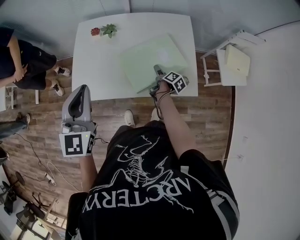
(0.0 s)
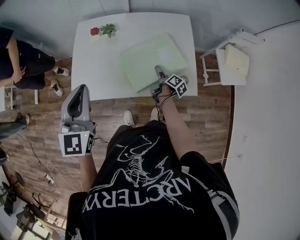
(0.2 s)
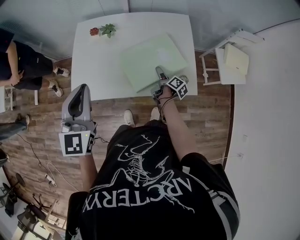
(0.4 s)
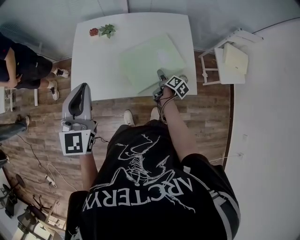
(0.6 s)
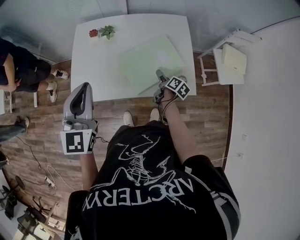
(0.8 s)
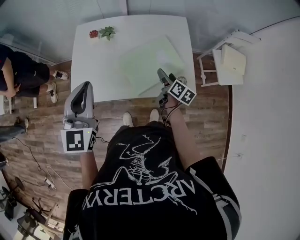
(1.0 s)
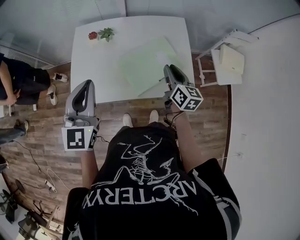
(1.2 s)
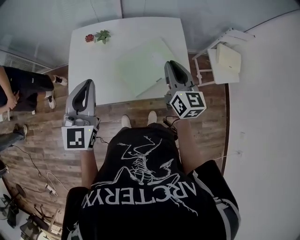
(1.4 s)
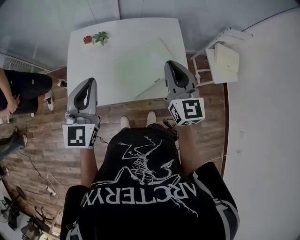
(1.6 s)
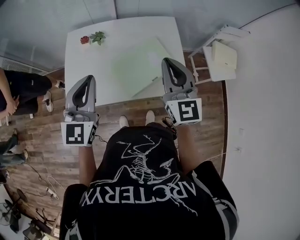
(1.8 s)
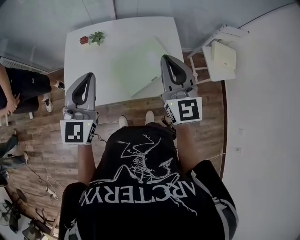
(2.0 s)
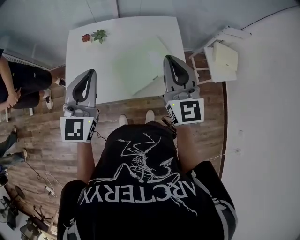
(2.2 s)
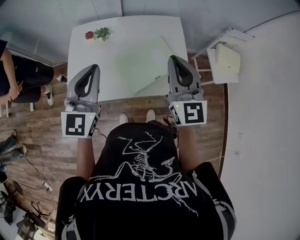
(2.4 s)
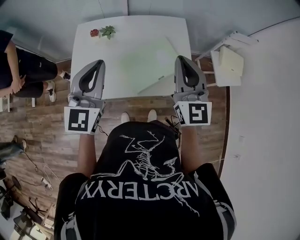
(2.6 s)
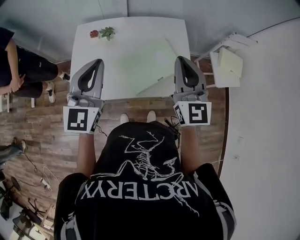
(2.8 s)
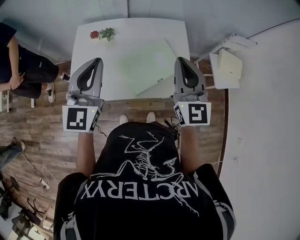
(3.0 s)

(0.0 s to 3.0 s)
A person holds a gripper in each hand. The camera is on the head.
0.0 s - 1.6 s: The right gripper moves upward, some 35 cm, twists roughly 80 degrees counterclockwise, seen from behind, and closes up.
1.6 s - 3.0 s: The grippers move only a little.

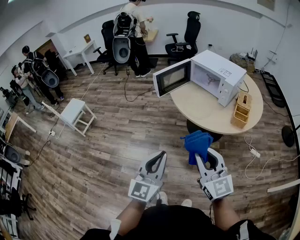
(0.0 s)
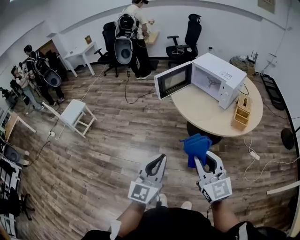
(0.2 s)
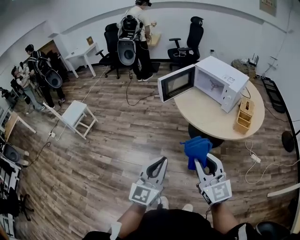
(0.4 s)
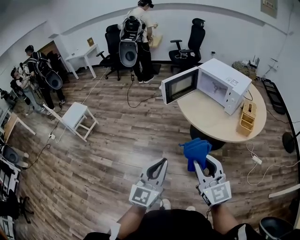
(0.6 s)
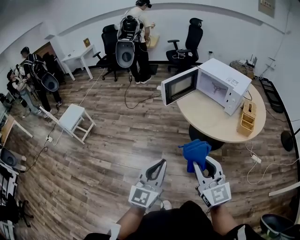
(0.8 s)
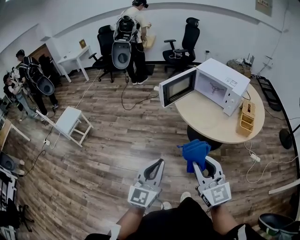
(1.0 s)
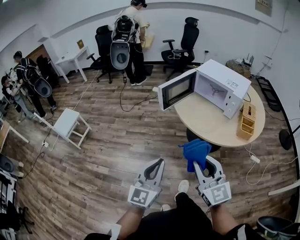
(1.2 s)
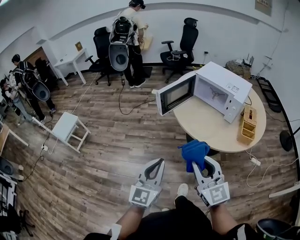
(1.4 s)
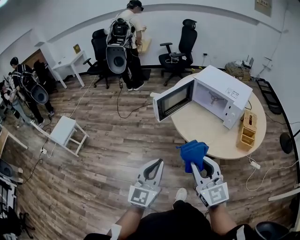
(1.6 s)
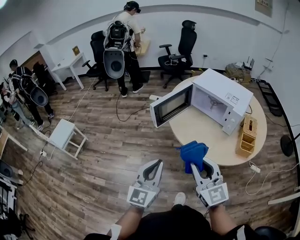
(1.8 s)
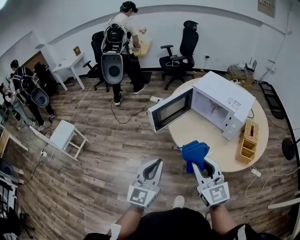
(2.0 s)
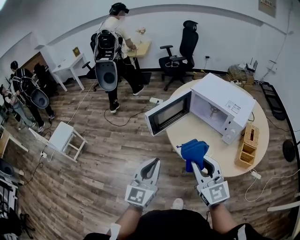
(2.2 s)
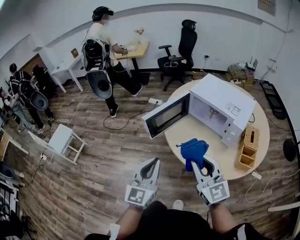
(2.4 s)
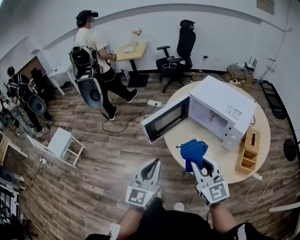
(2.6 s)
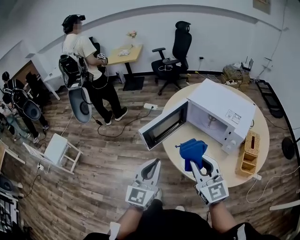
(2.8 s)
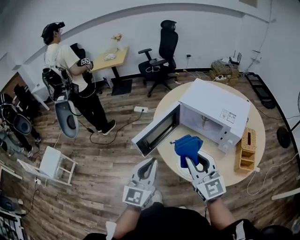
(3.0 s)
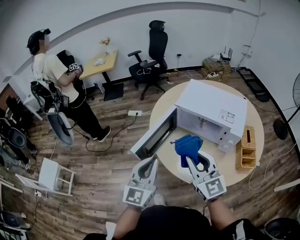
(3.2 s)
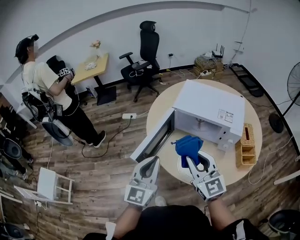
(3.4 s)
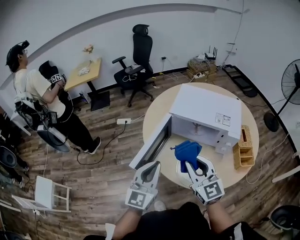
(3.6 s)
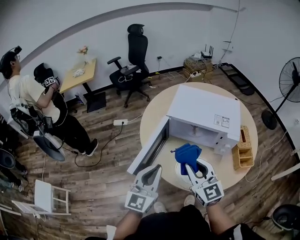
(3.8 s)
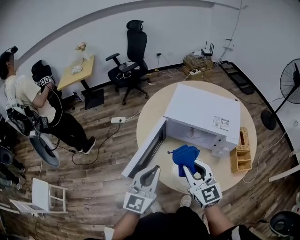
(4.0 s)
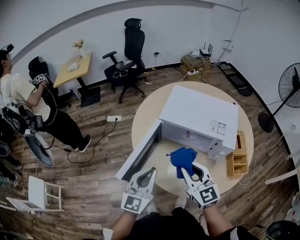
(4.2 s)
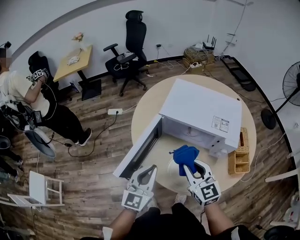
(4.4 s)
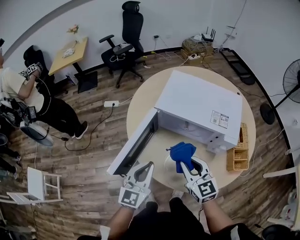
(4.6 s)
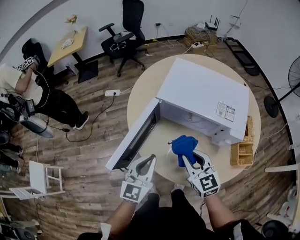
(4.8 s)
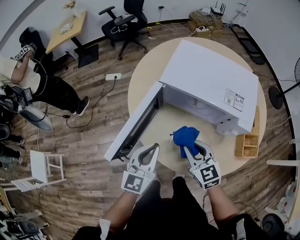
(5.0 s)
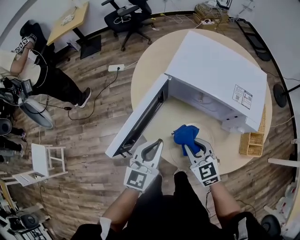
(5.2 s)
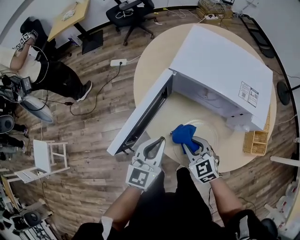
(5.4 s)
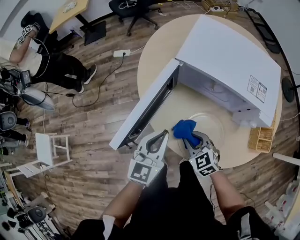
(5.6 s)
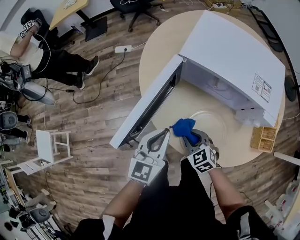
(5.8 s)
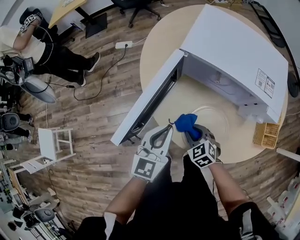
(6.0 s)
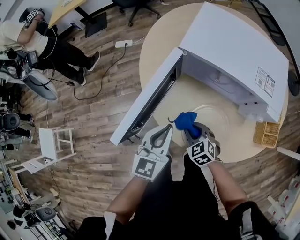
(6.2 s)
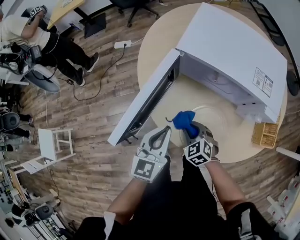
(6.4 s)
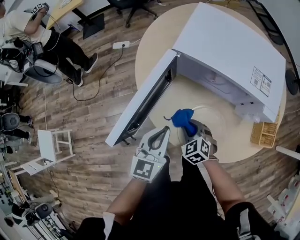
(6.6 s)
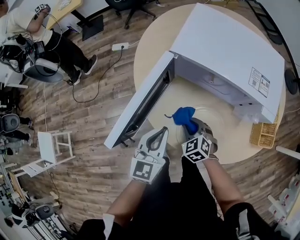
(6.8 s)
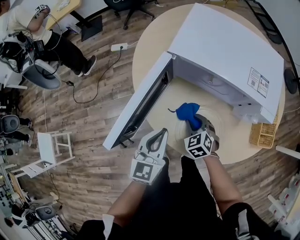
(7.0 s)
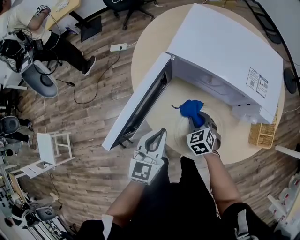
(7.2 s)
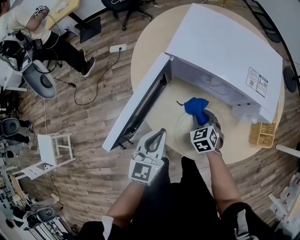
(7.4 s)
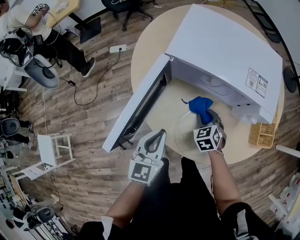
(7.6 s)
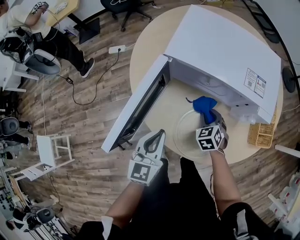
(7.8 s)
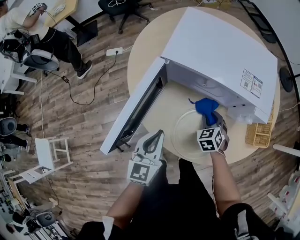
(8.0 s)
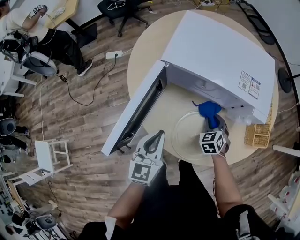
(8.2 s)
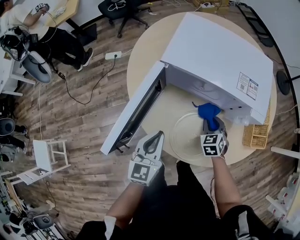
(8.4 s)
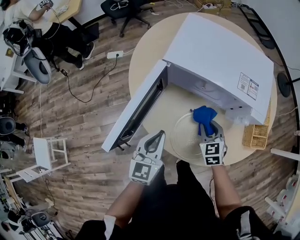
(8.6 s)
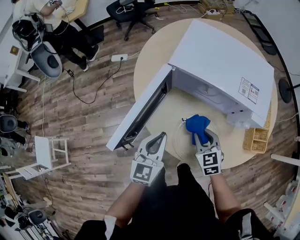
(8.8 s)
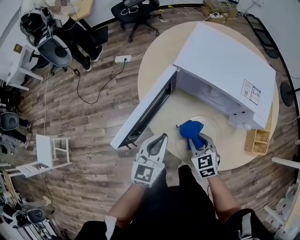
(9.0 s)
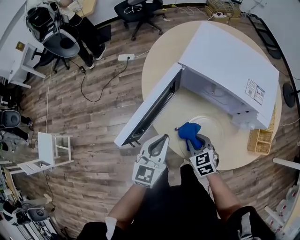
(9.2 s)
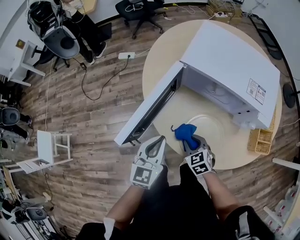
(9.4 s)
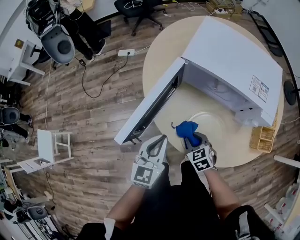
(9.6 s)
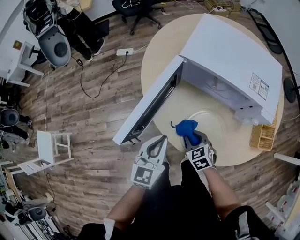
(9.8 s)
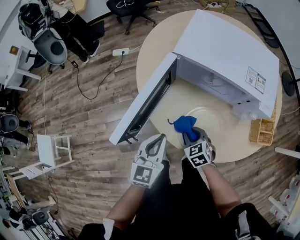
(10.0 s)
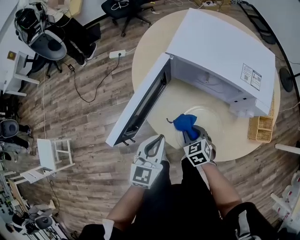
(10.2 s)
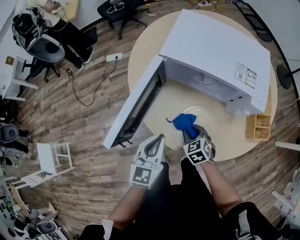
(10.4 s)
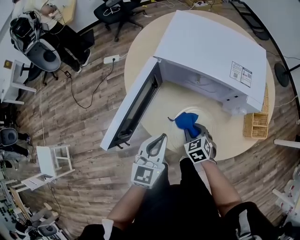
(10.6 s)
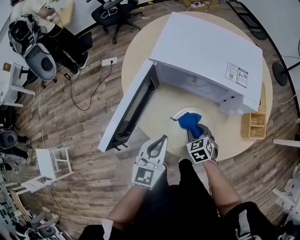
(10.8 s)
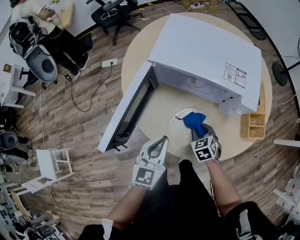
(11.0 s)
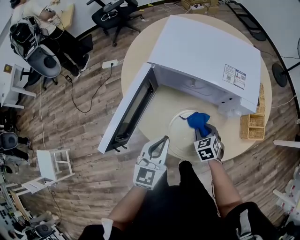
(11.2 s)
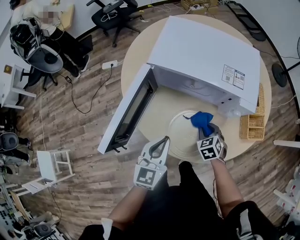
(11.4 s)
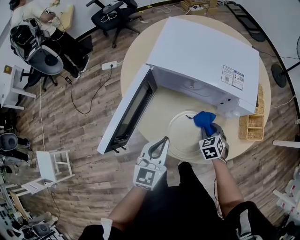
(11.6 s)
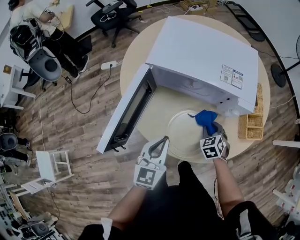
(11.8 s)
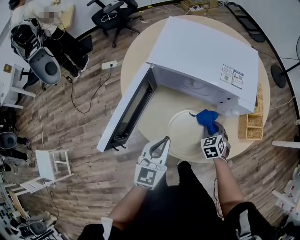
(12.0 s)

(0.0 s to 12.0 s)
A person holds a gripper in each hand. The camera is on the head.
0.0 s - 1.6 s: The left gripper shifts some 20 cm forward. Meanwhile the right gripper moves forward and to the left, roughly 20 cm.
1.6 s - 3.0 s: Both grippers move forward, about 30 cm.
3.0 s - 4.4 s: The grippers both shift forward and downward by some 15 cm. The right gripper rotates about 20 degrees.
4.4 s - 6.0 s: The left gripper heads downward, covering roughly 10 cm; the right gripper moves downward, some 25 cm, and tips its fingers downward by about 40 degrees.
6.0 s - 7.6 s: The right gripper goes approximately 15 cm to the right and forward, and swivels some 20 degrees.
7.6 s - 9.0 s: The right gripper shifts roughly 10 cm backward and upward.
9.0 s - 10.4 s: The right gripper is displaced downward by some 5 cm.
10.4 s - 12.0 s: The right gripper travels to the right by about 15 cm. Meanwhile the left gripper is displaced to the right by approximately 5 cm.

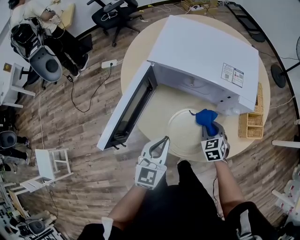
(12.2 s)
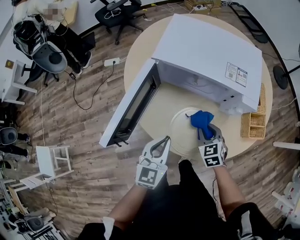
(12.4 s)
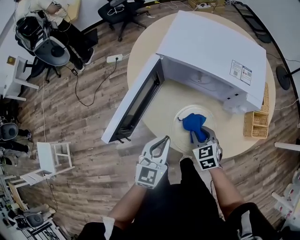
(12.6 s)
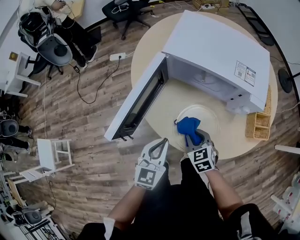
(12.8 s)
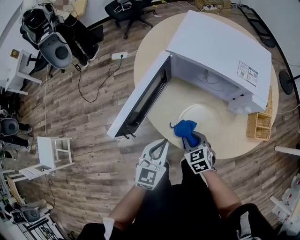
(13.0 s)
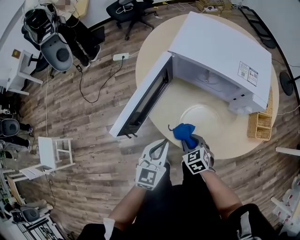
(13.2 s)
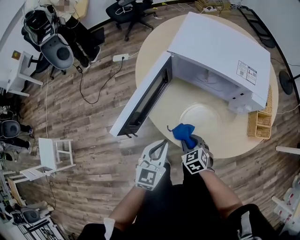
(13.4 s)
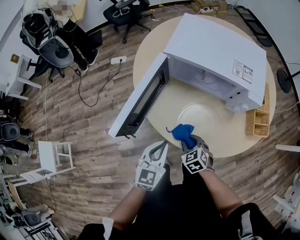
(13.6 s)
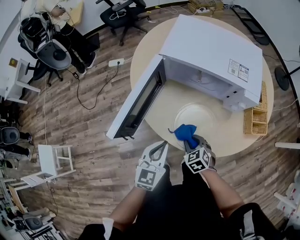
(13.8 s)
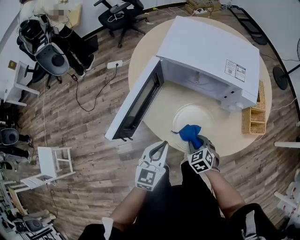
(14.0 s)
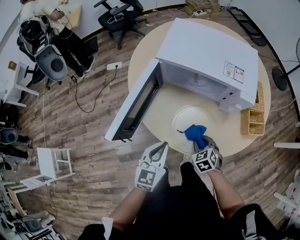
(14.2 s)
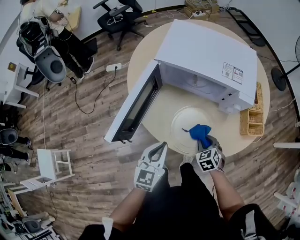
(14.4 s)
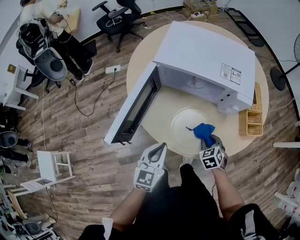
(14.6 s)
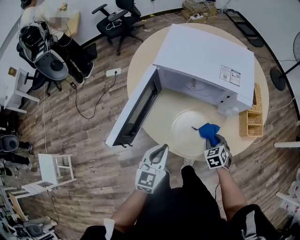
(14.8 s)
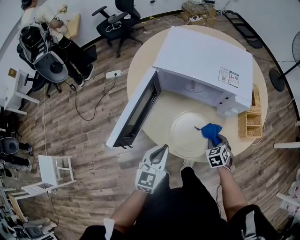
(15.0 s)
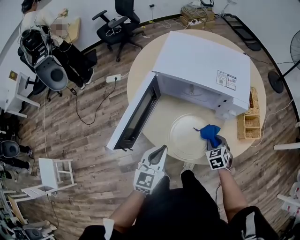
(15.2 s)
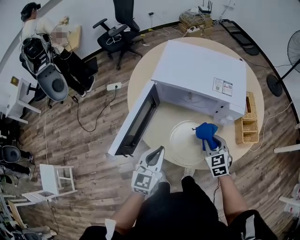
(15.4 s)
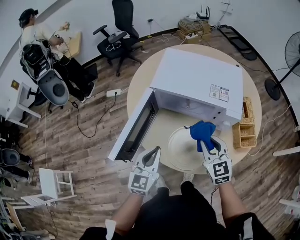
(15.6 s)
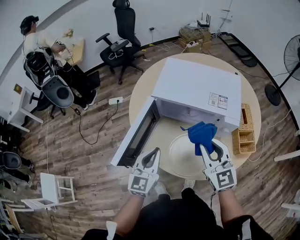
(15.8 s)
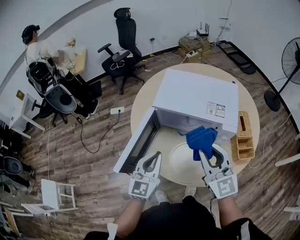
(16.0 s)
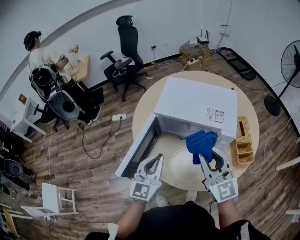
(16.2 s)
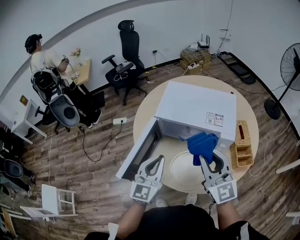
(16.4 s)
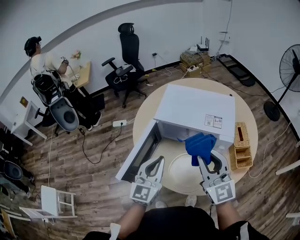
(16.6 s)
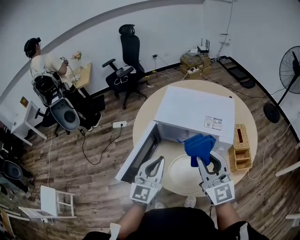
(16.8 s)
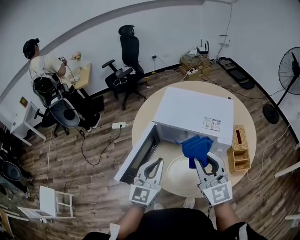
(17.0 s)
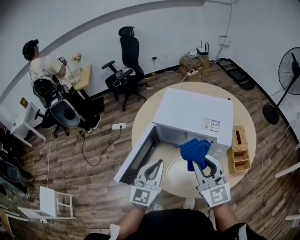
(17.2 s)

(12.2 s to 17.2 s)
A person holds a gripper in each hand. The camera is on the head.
12.2 s - 13.8 s: The left gripper shifts approximately 5 cm backward; the right gripper heads to the left and backward, covering roughly 15 cm.
13.8 s - 15.6 s: The left gripper is displaced upward and forward by some 10 cm, while the right gripper heads upward and forward, covering approximately 20 cm, and tips its fingers upward by approximately 30 degrees.
15.6 s - 17.2 s: The right gripper shifts approximately 15 cm upward, and turns by some 30 degrees. The left gripper travels upward by roughly 10 cm.

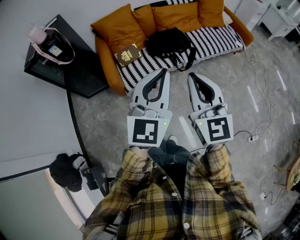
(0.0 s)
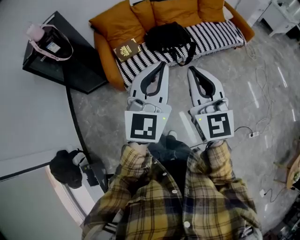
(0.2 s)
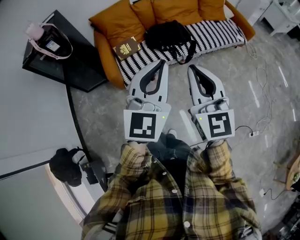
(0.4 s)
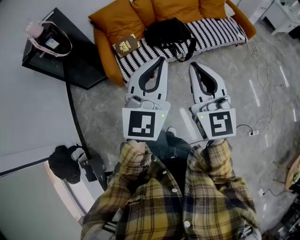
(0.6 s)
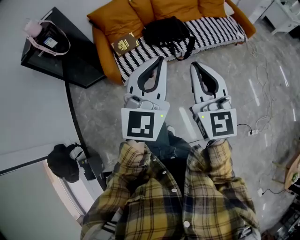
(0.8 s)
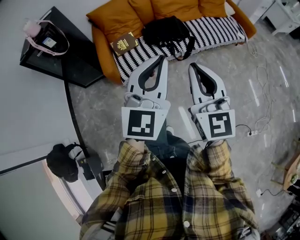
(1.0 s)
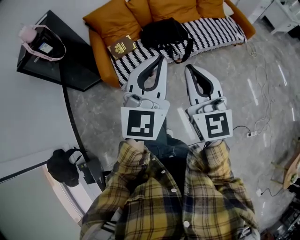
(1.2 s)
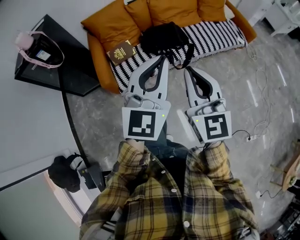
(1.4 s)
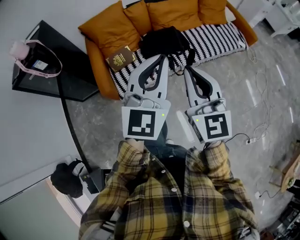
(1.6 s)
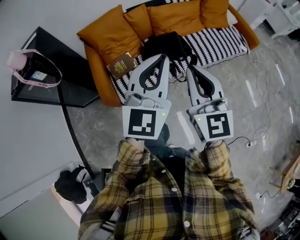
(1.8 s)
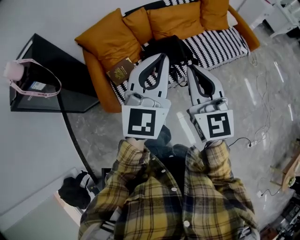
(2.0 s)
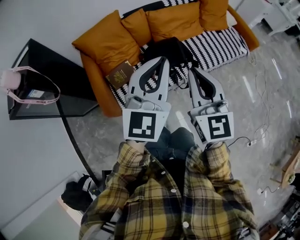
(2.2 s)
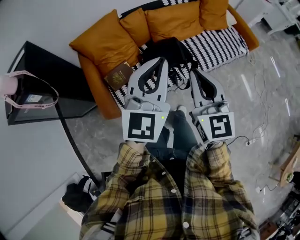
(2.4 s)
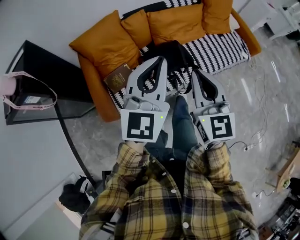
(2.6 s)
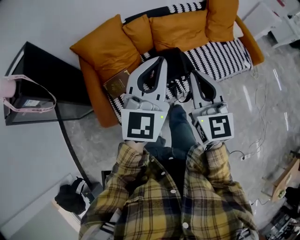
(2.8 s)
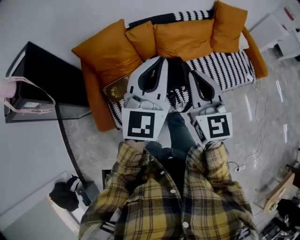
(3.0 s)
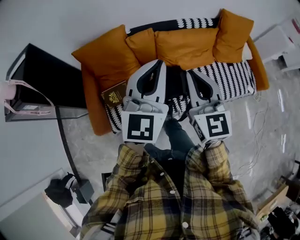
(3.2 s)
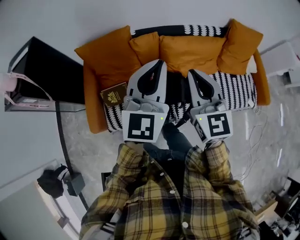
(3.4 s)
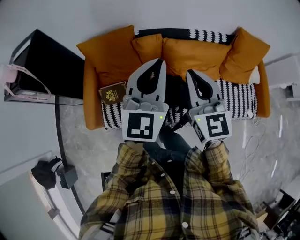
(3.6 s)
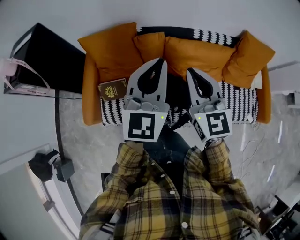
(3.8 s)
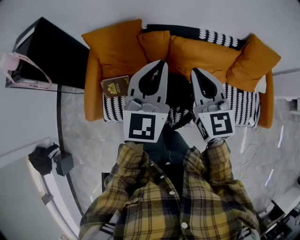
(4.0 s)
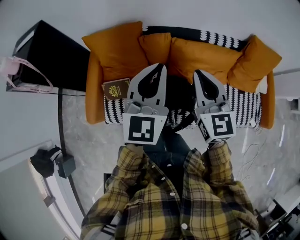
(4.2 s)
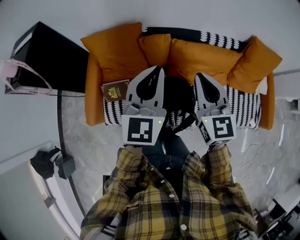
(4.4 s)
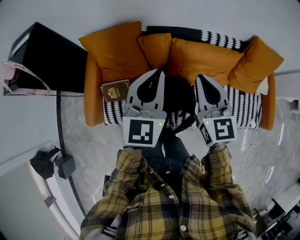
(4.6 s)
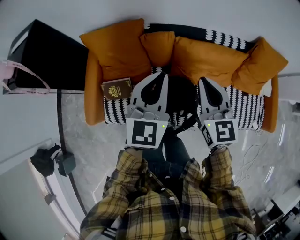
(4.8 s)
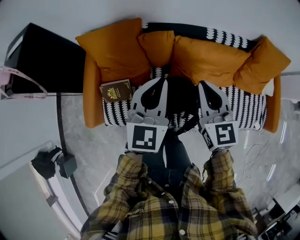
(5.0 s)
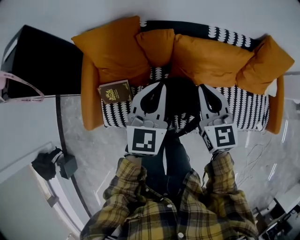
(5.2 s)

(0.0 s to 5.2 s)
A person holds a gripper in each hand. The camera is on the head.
0.0 s - 1.8 s: Both grippers travel together forward, some 25 cm.
1.8 s - 3.4 s: Both grippers travel together forward, roughly 35 cm.
3.4 s - 5.2 s: Both grippers travel together downward and forward, some 20 cm. The left gripper turns by approximately 20 degrees.
